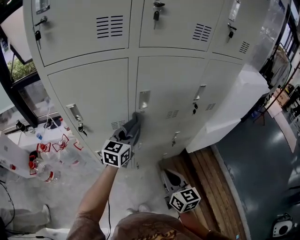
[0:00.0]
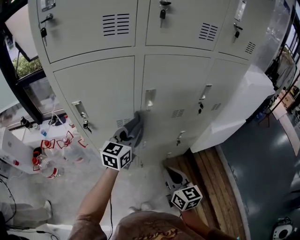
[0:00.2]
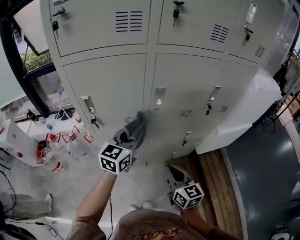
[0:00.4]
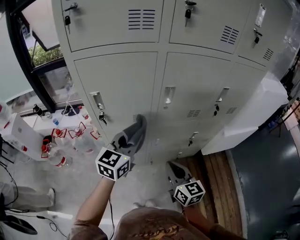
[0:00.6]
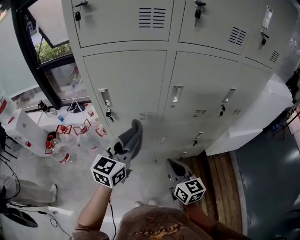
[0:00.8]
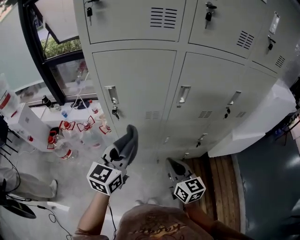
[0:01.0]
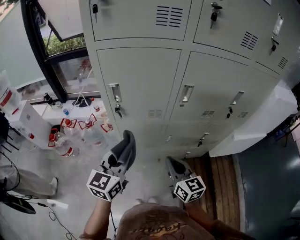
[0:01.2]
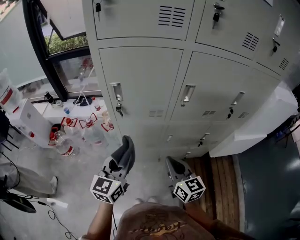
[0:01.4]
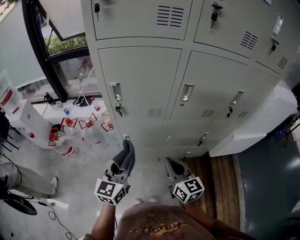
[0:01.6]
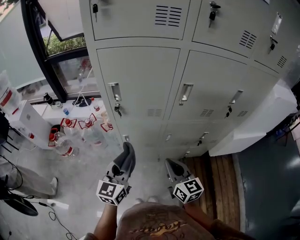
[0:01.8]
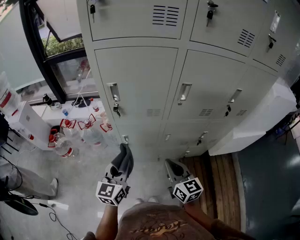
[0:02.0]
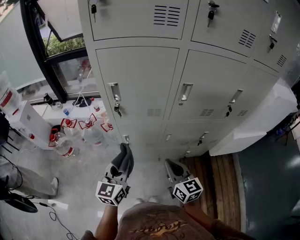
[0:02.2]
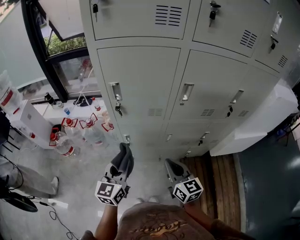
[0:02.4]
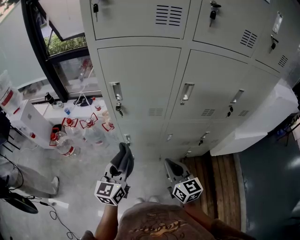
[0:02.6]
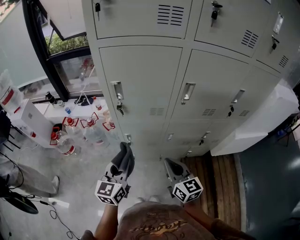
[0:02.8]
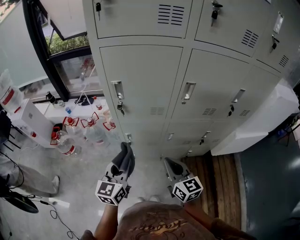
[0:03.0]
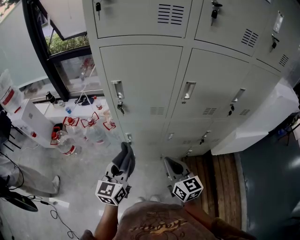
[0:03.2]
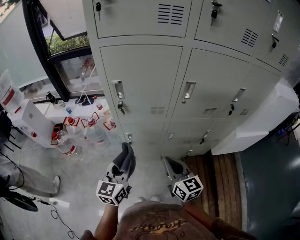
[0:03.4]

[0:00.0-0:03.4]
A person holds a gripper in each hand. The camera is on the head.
0:00.0 to 0:01.6: The right gripper moves to the left, some 10 cm; the left gripper travels backward and to the left by roughly 25 cm, and rotates about 20 degrees.
0:01.6 to 0:03.4: The grippers stay close to where they were, moving slightly.

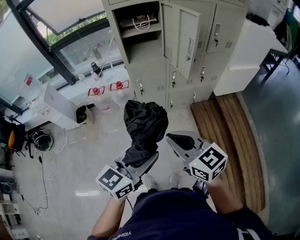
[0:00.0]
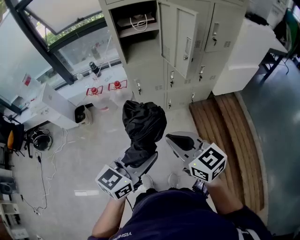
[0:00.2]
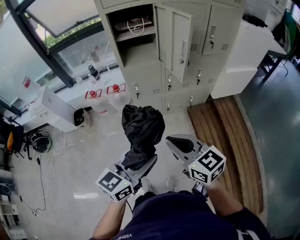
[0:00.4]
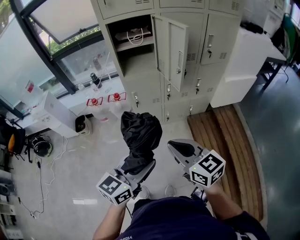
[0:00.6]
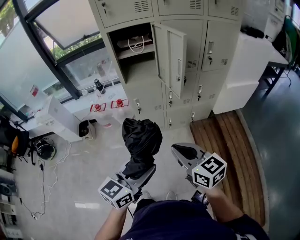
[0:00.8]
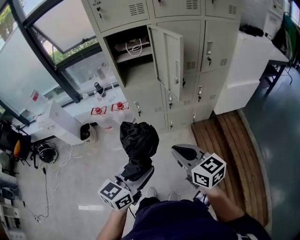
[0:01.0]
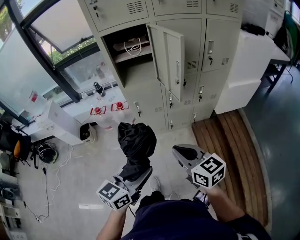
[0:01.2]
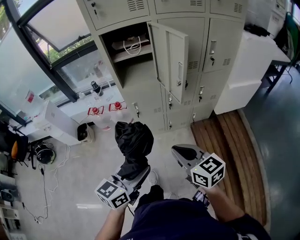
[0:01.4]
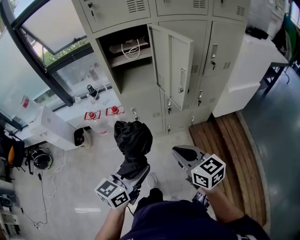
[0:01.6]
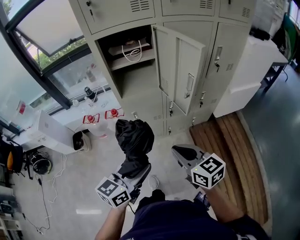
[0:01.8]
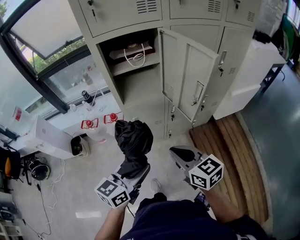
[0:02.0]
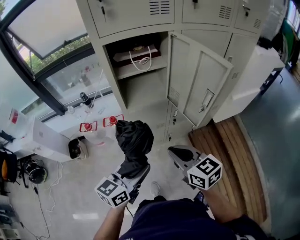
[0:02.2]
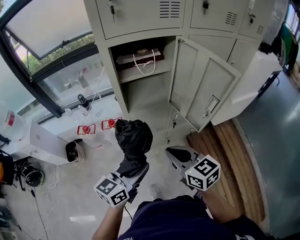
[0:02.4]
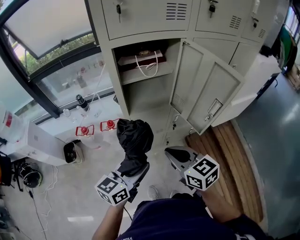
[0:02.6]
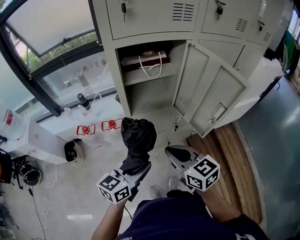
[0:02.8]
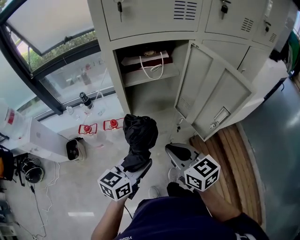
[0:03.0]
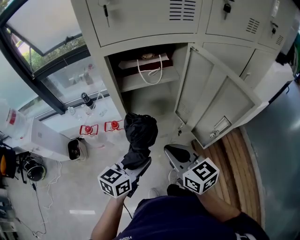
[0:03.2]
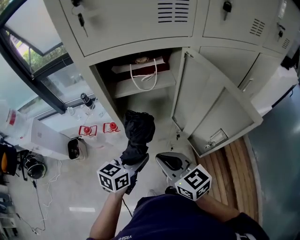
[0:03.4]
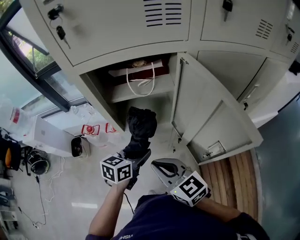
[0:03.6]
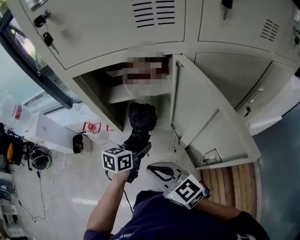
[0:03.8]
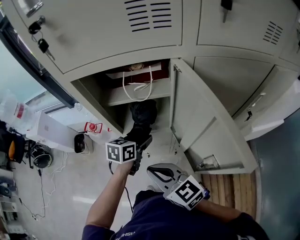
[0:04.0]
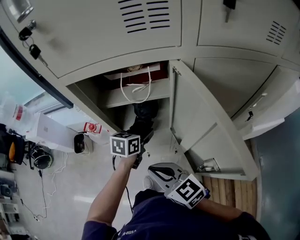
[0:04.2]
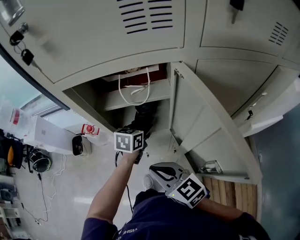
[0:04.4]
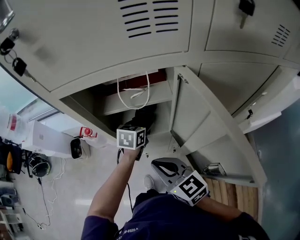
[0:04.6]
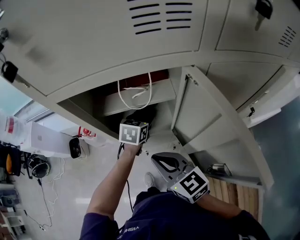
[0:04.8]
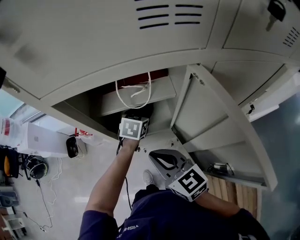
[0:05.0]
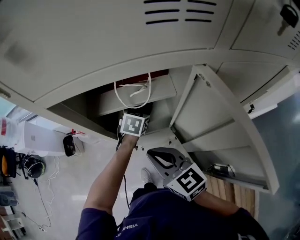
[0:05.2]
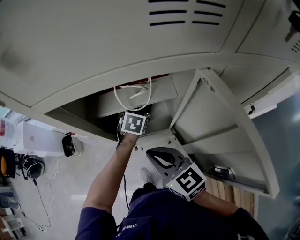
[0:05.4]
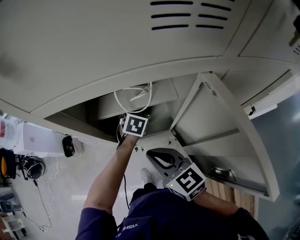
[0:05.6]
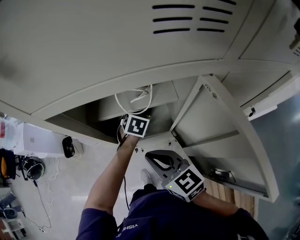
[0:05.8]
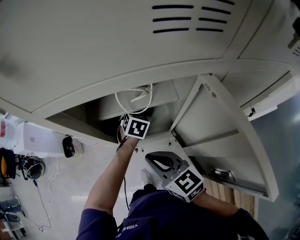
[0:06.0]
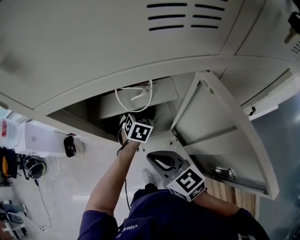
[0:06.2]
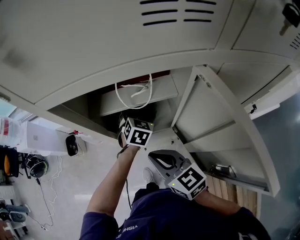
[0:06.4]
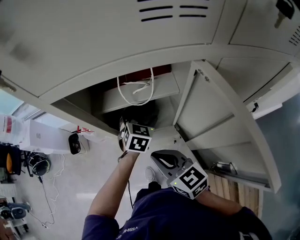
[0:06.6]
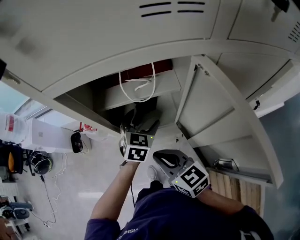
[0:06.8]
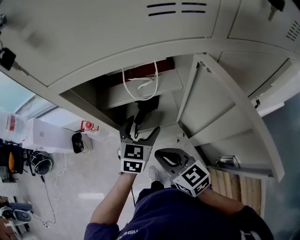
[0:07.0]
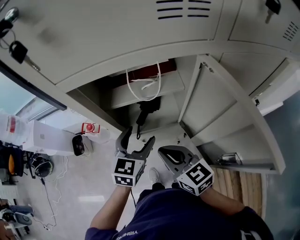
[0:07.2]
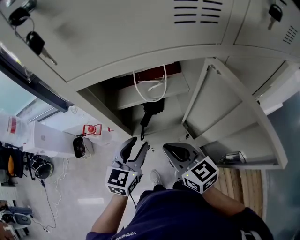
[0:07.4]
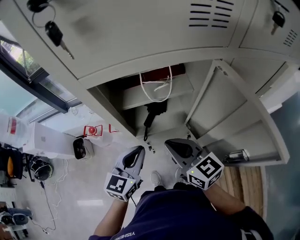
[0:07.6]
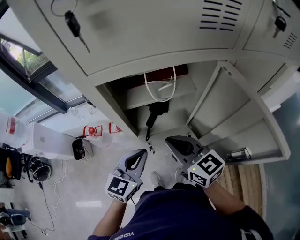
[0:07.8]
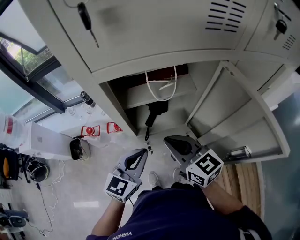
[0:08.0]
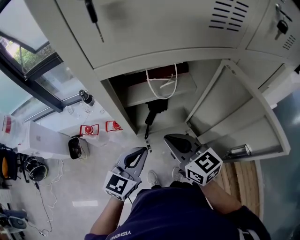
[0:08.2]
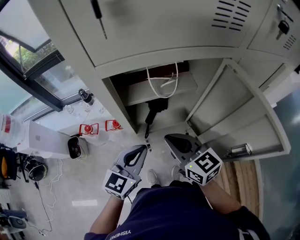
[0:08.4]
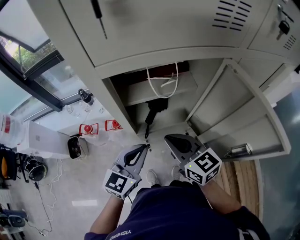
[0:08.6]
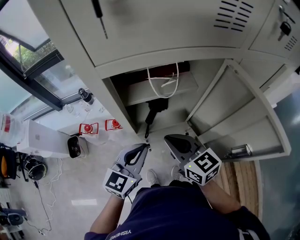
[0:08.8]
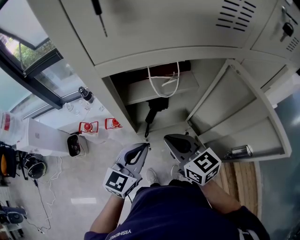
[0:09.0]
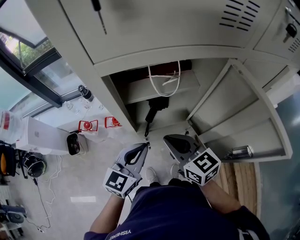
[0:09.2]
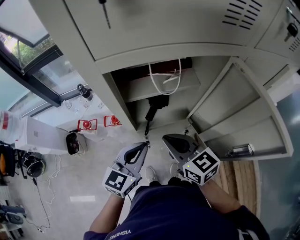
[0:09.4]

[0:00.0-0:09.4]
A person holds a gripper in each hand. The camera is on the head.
0:00.0 to 0:01.6: The right gripper is displaced forward and to the right by roughly 15 cm. Meanwhile the left gripper moves forward, some 15 cm.
0:01.6 to 0:03.2: The left gripper heads forward, covering about 25 cm. Meanwhile the right gripper goes roughly 25 cm forward and to the left.
0:03.2 to 0:04.8: The right gripper shifts roughly 10 cm forward. Meanwhile the left gripper moves forward, about 30 cm, and turns by about 30 degrees.
0:04.8 to 0:06.2: The left gripper turns by approximately 20 degrees, and opens.
0:06.2 to 0:07.8: The left gripper moves backward, to the left and upward, about 25 cm, rotates some 30 degrees, and closes its fingers.
0:07.8 to 0:09.4: The grippers stay close to where they were, moving slightly.

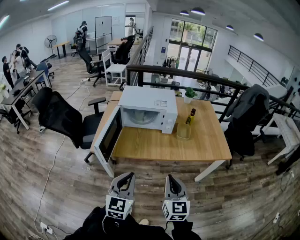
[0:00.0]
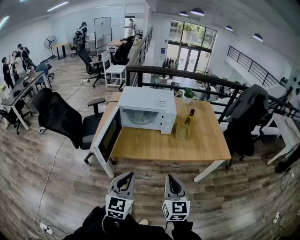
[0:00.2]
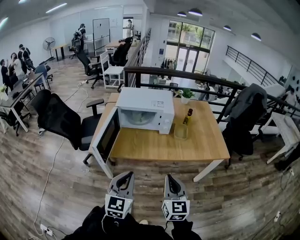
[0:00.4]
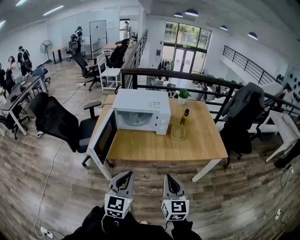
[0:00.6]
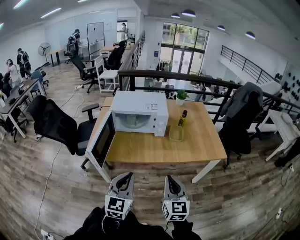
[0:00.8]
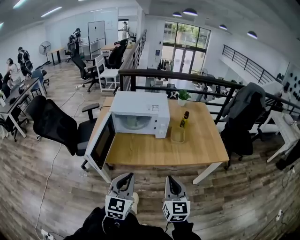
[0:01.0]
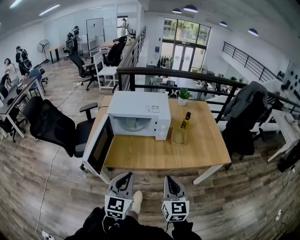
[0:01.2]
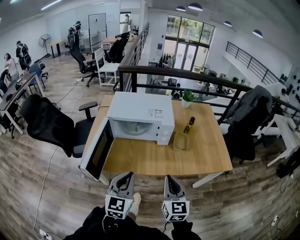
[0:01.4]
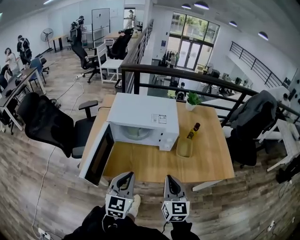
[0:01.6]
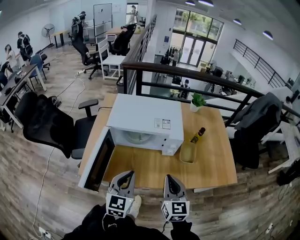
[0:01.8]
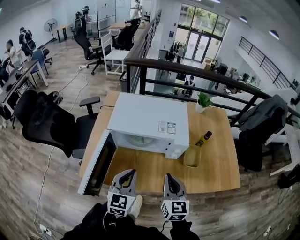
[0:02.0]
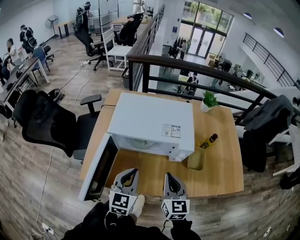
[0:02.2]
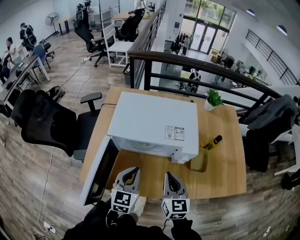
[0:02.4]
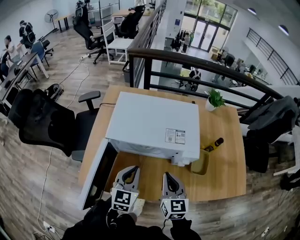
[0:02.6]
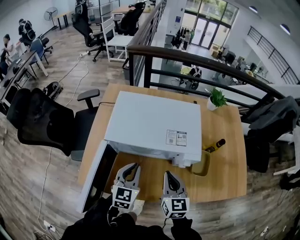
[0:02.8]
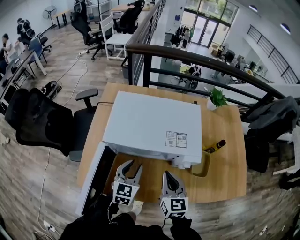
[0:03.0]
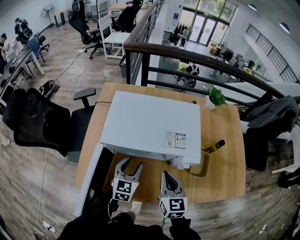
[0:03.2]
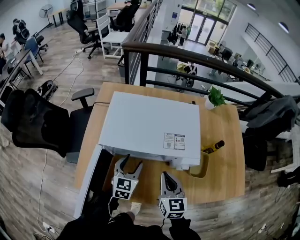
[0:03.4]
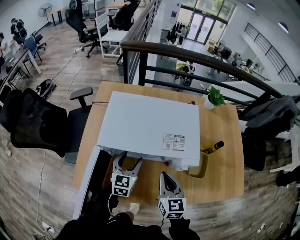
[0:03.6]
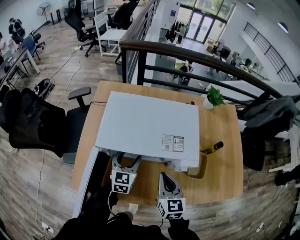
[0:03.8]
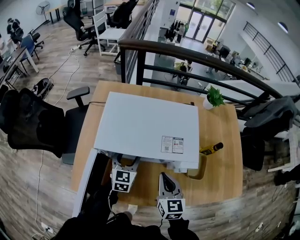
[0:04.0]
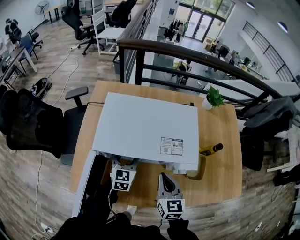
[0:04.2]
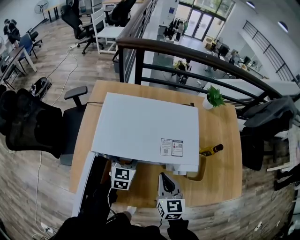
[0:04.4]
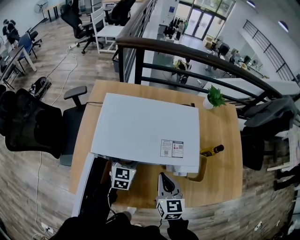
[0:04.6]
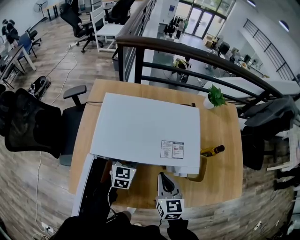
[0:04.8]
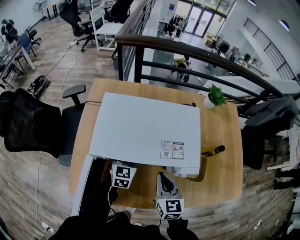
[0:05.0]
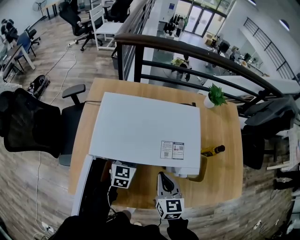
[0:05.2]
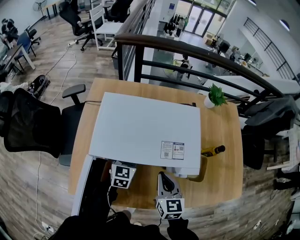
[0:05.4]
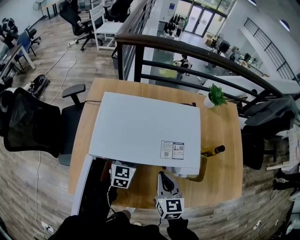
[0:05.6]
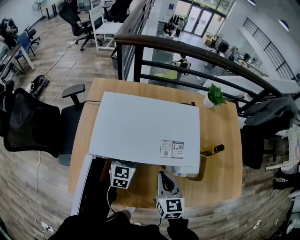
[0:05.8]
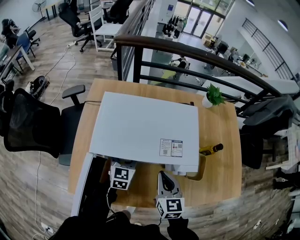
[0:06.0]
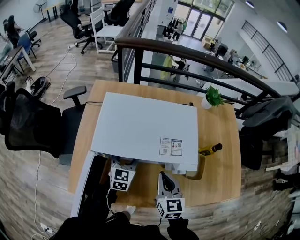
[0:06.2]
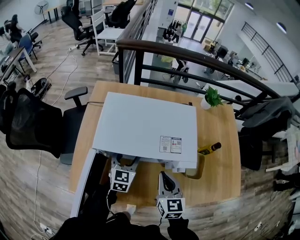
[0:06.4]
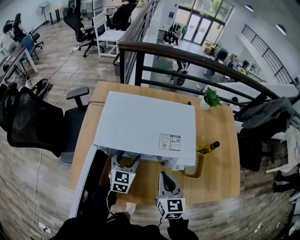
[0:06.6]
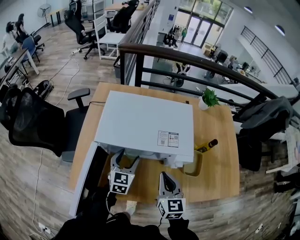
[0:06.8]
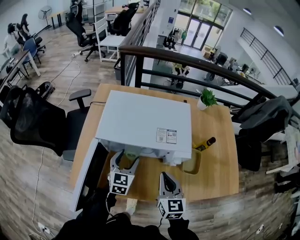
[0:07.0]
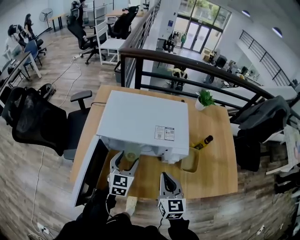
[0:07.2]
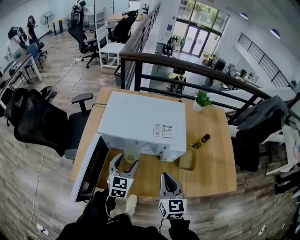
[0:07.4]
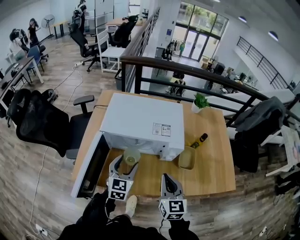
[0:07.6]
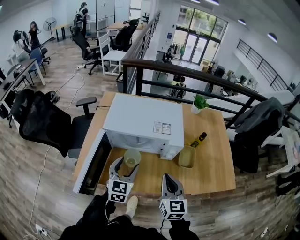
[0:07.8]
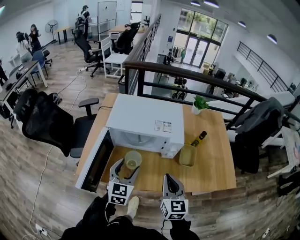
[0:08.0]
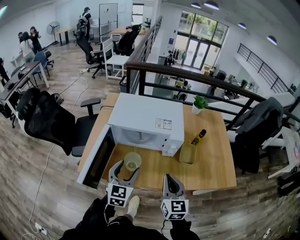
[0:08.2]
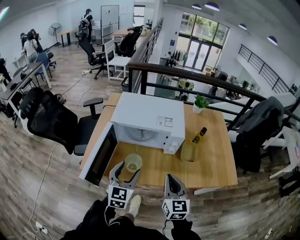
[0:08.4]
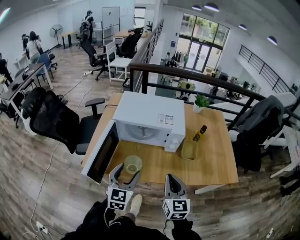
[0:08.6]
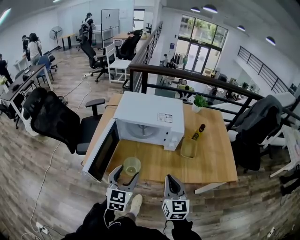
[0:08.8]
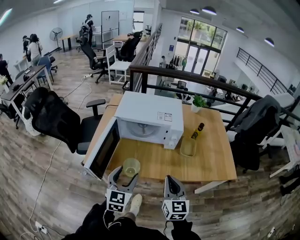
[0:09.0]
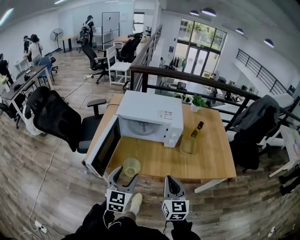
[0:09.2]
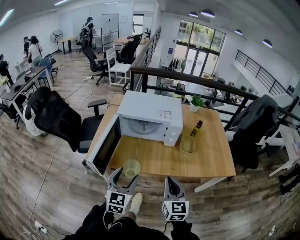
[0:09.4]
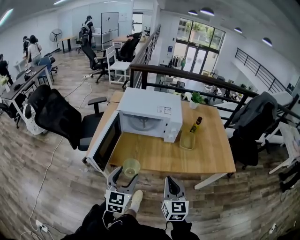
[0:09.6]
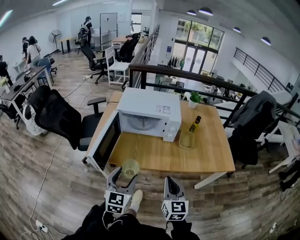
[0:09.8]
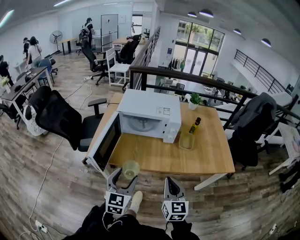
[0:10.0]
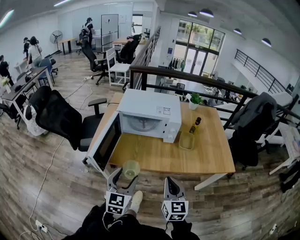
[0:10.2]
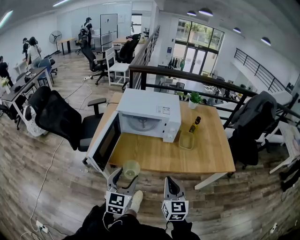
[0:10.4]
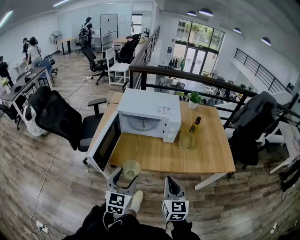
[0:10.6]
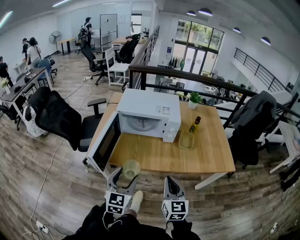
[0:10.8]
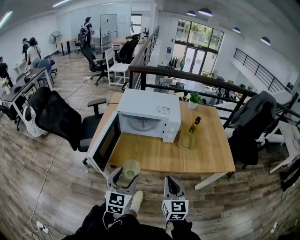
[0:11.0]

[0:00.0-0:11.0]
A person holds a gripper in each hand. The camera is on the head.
0:00.0 to 0:01.6: Both grippers travel together forward, some 25 cm.
0:01.6 to 0:03.2: The right gripper goes about 25 cm forward; the left gripper shifts approximately 35 cm forward and downward, and opens its fingers.
0:03.2 to 0:04.8: The left gripper is displaced forward by some 10 cm. Meanwhile the right gripper changes place by about 5 cm.
0:04.8 to 0:06.2: The grippers make only small movements.
0:06.2 to 0:07.8: The two grippers go roughly 25 cm backward and upward.
0:07.8 to 0:09.4: The grippers both shift backward by some 25 cm.
0:09.4 to 0:11.0: The grippers stay close to where they were, moving slightly.
